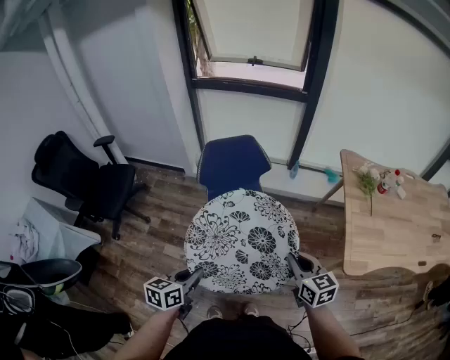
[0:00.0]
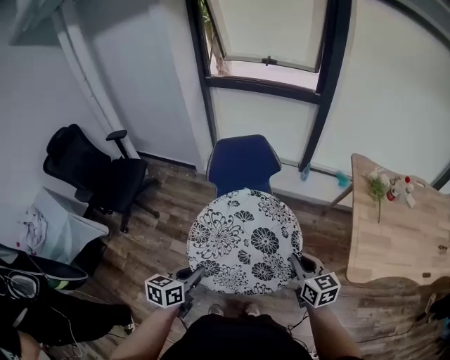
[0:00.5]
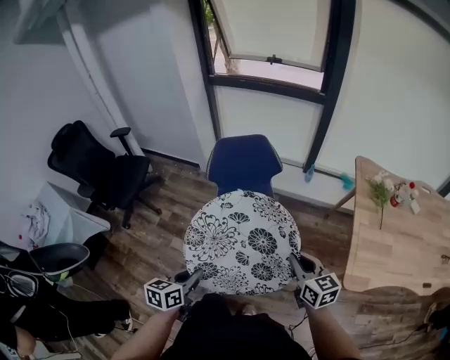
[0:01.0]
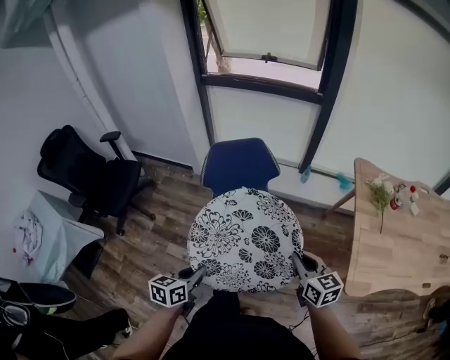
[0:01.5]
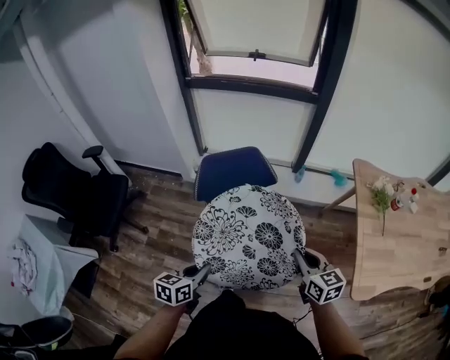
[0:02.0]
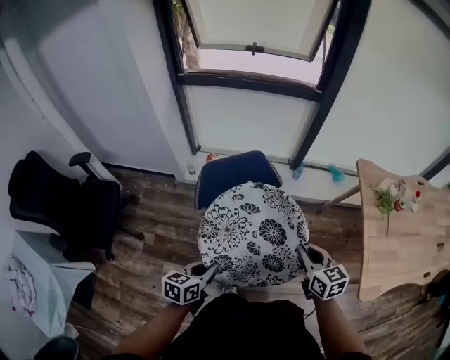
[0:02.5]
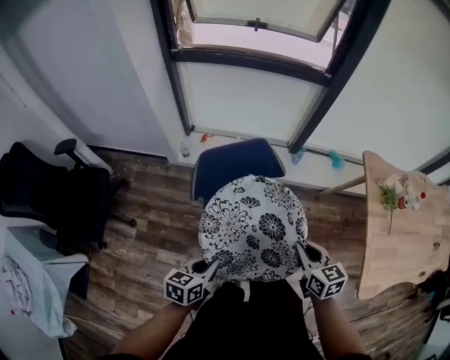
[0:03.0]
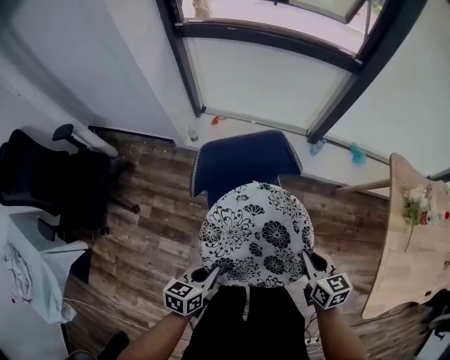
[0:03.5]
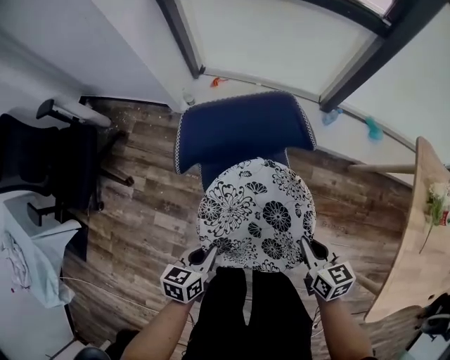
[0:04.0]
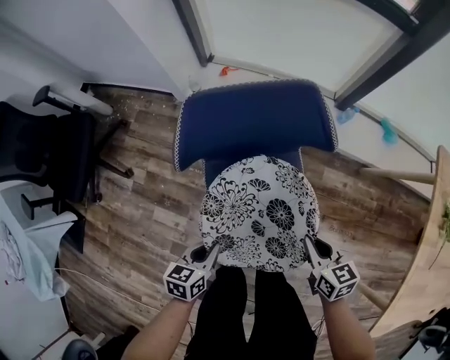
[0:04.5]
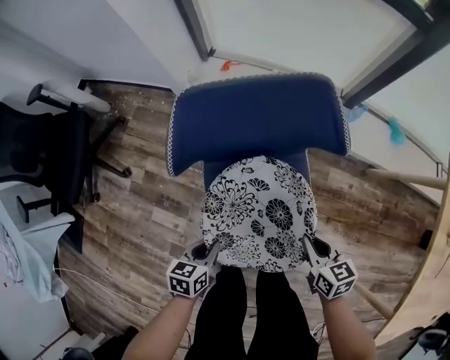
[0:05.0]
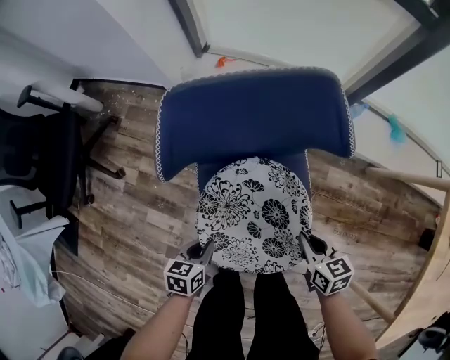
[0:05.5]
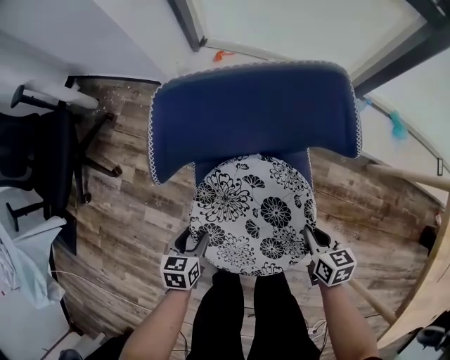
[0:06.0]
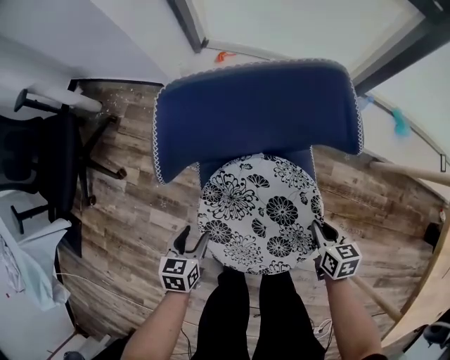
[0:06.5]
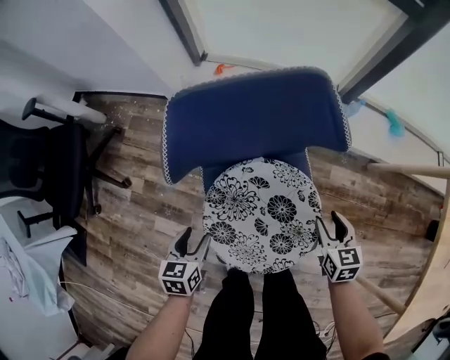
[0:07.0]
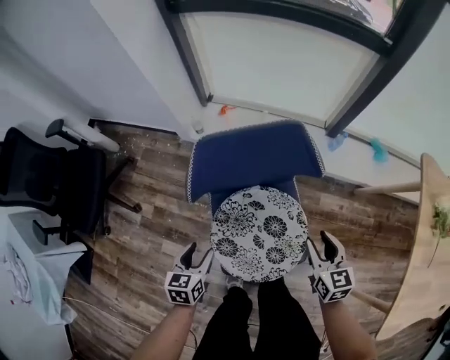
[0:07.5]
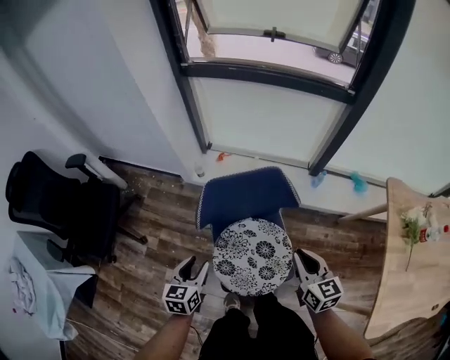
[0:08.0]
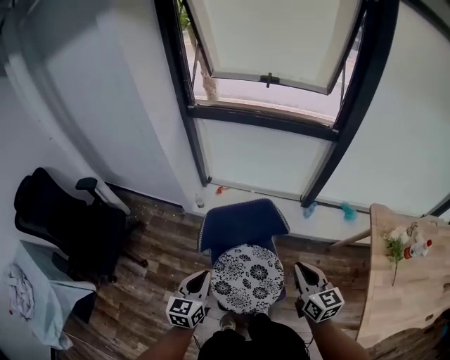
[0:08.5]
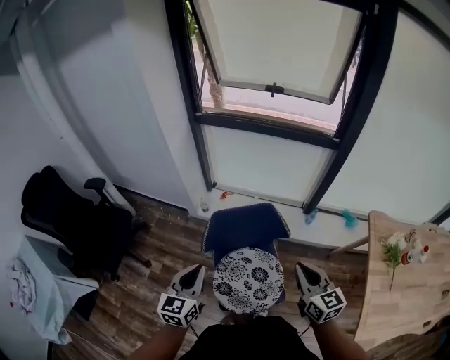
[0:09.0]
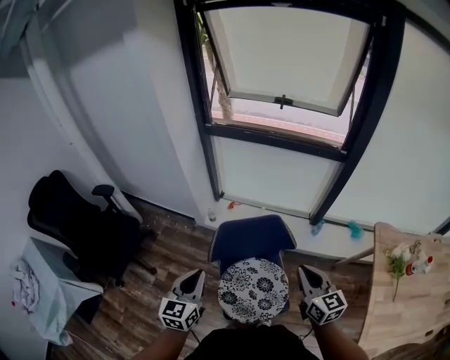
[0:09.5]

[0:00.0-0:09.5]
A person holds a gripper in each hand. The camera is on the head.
0.0 to 2.0 s: Both grippers travel together forward, about 15 cm.
2.0 to 4.0 s: The grippers both shift downward and forward by some 25 cm.
4.0 to 5.5 s: The two grippers go roughly 15 cm downward.
5.5 to 7.5 s: The grippers both shift upward by some 15 cm. The left gripper opens its fingers. The right gripper turns by about 20 degrees, and opens up.
7.5 to 9.5 s: The two grippers go about 35 cm upward. The right gripper rotates roughly 20 degrees, and closes up; the left gripper rotates approximately 30 degrees, and closes its fingers.

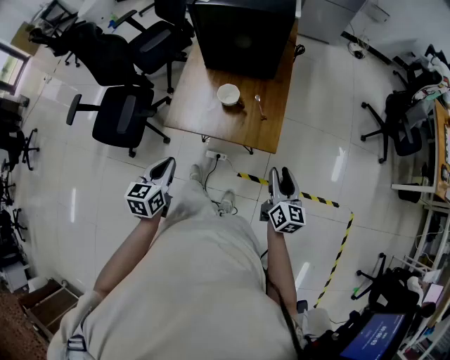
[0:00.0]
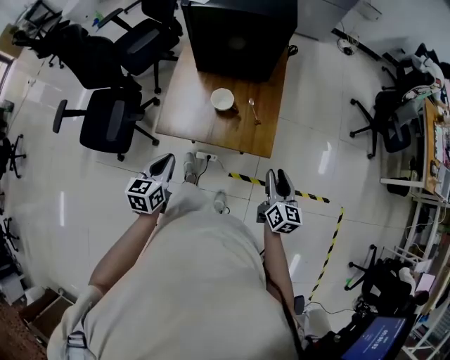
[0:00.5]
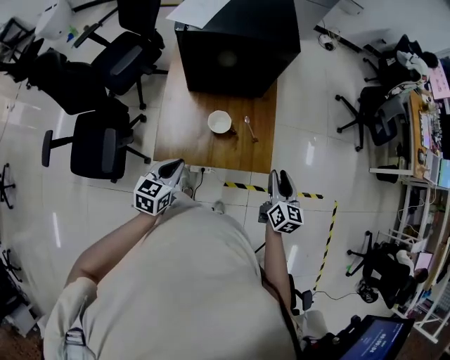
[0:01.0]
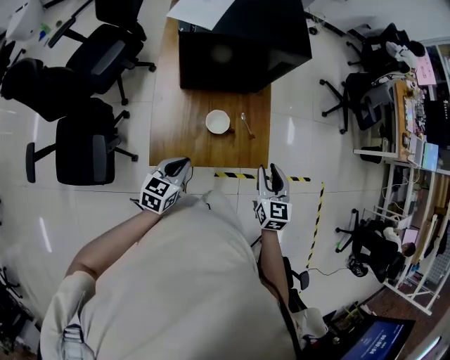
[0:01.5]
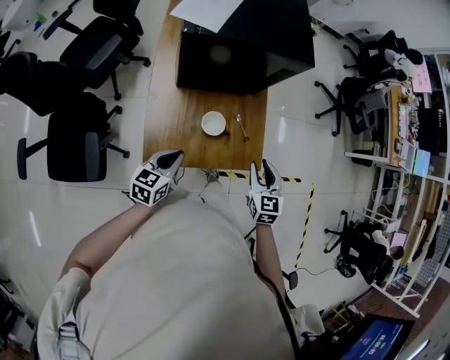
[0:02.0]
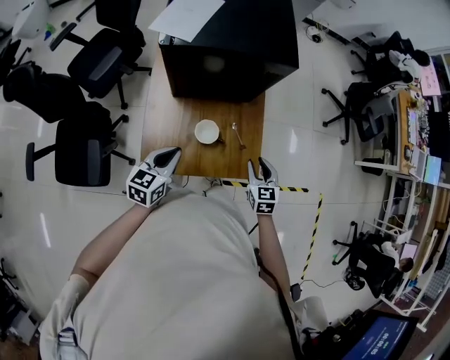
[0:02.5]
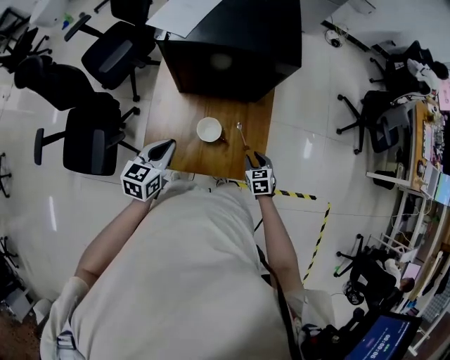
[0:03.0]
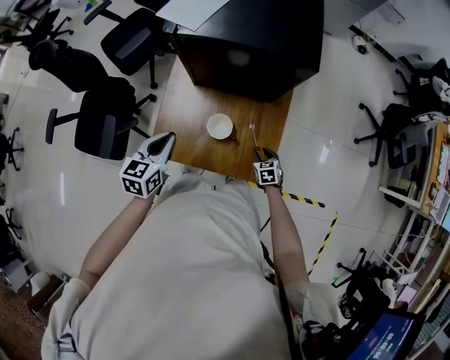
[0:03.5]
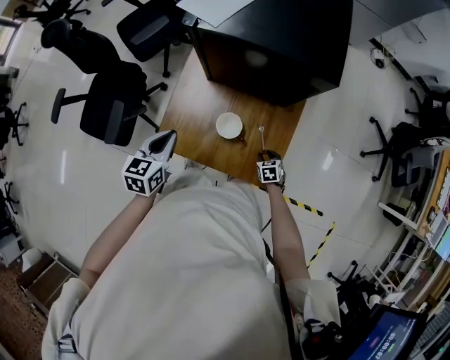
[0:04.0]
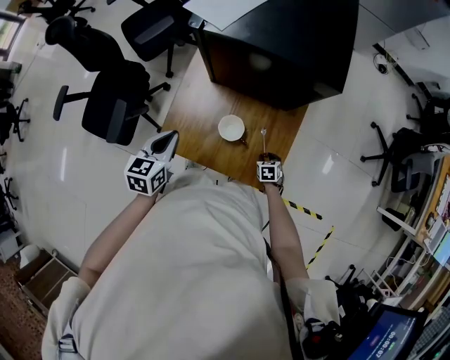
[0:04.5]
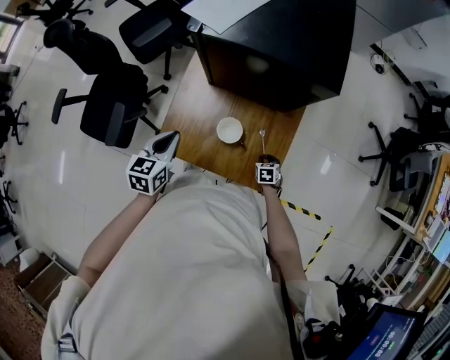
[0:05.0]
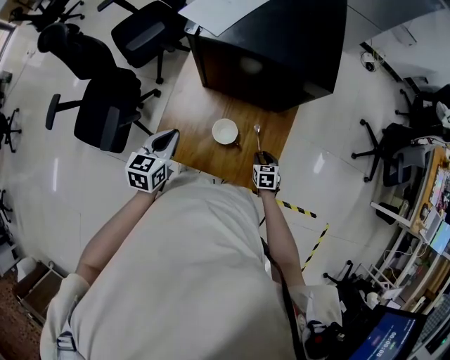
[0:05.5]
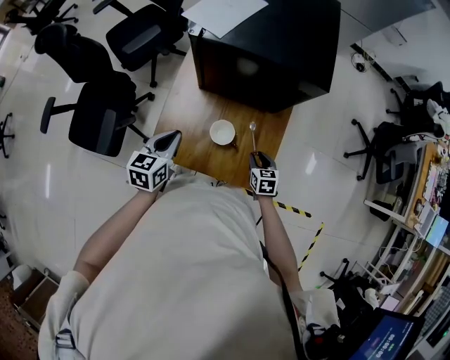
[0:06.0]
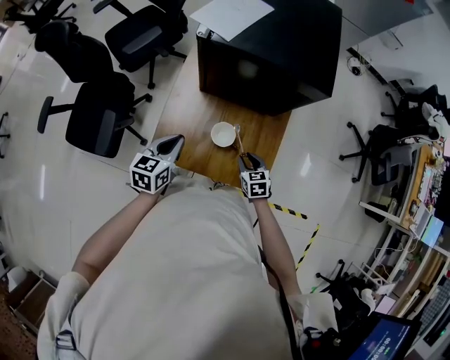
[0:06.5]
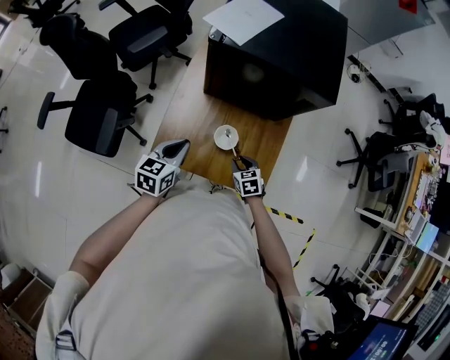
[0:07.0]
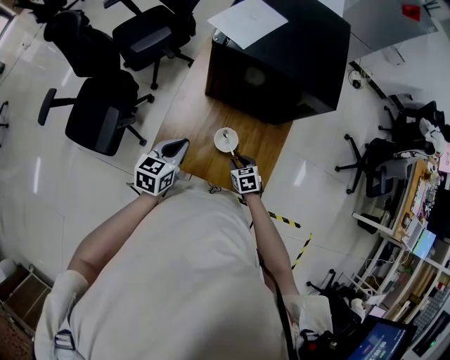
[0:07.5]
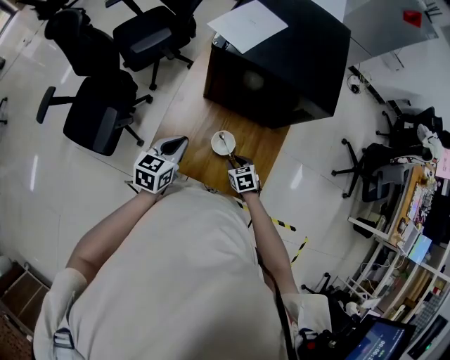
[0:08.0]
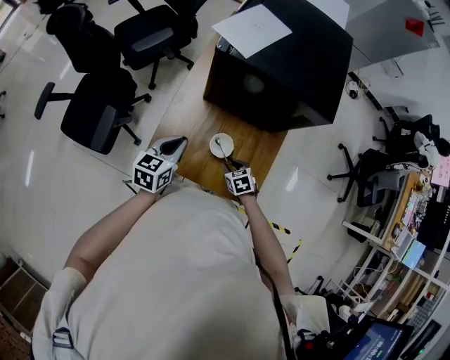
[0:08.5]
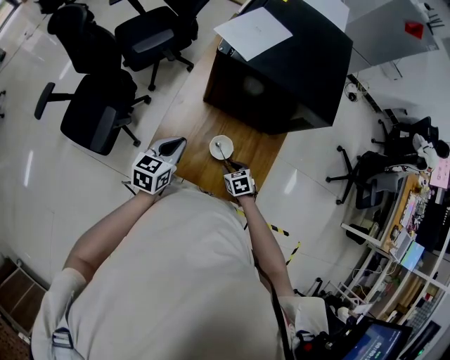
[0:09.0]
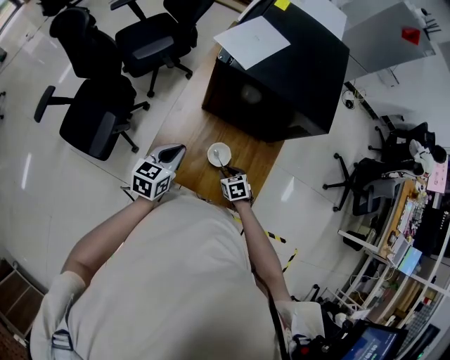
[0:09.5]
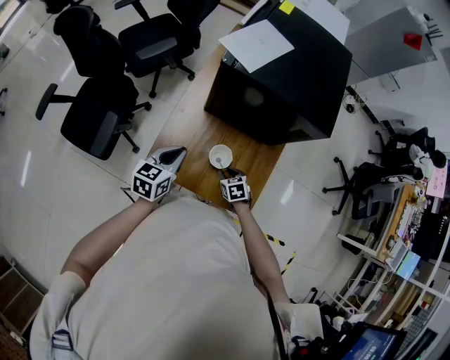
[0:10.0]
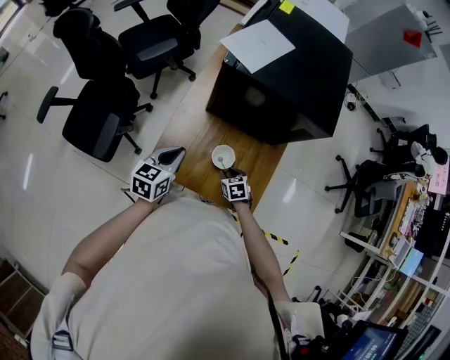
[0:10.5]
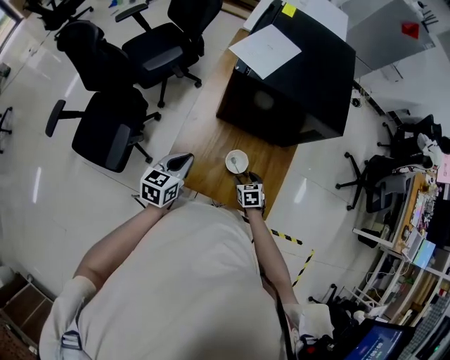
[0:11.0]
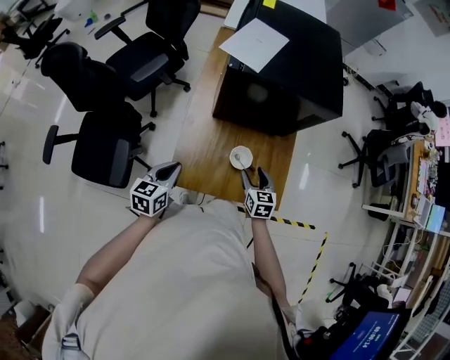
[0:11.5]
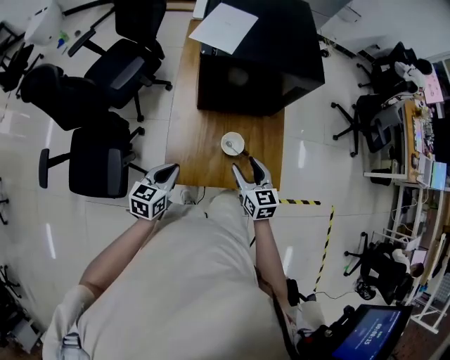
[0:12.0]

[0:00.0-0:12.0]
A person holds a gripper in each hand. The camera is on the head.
0.0 to 2.0 s: The right gripper shifts by roughly 20 cm, and turns by approximately 40 degrees. Meanwhile the left gripper shifts by some 25 cm, and changes its angle by roughly 30 degrees.
2.0 to 4.0 s: The left gripper moves approximately 5 cm, and changes its angle by some 30 degrees. The right gripper heads downward, covering some 30 cm, and tips its fingers downward by some 30 degrees.
4.0 to 6.0 s: The right gripper is displaced upward by roughly 15 cm.
6.0 to 8.0 s: The right gripper heads to the left, covering roughly 10 cm, and turns by about 20 degrees.
8.0 to 10.0 s: The grippers make only small movements.
10.0 to 12.0 s: The right gripper is displaced upward by roughly 20 cm, points its fingers roughly 30 degrees further upward, and opens up, while the left gripper shifts roughly 10 cm to the left and backward.

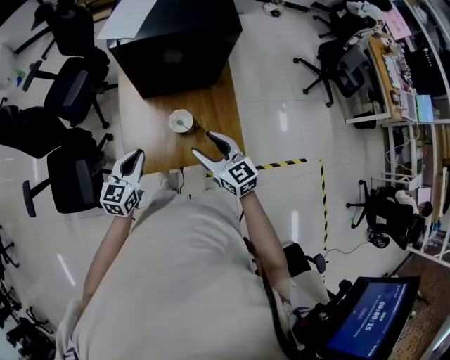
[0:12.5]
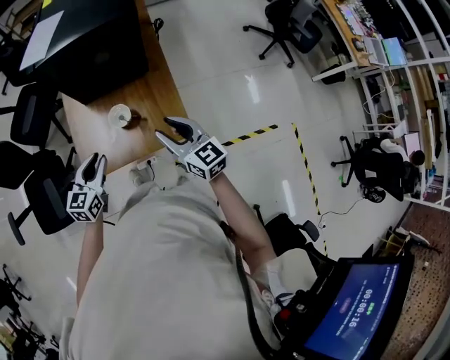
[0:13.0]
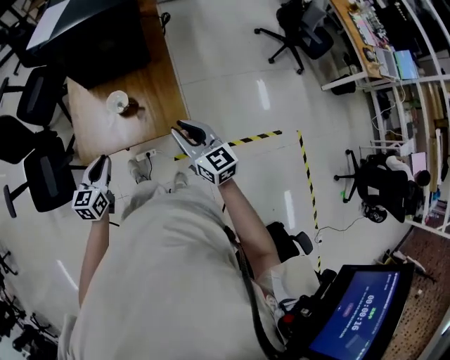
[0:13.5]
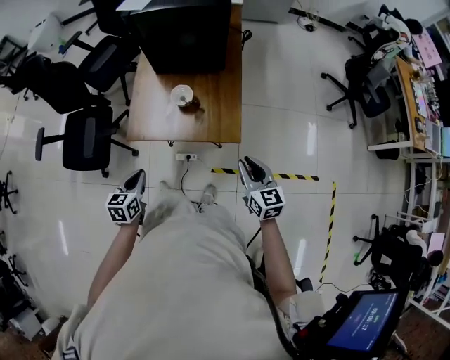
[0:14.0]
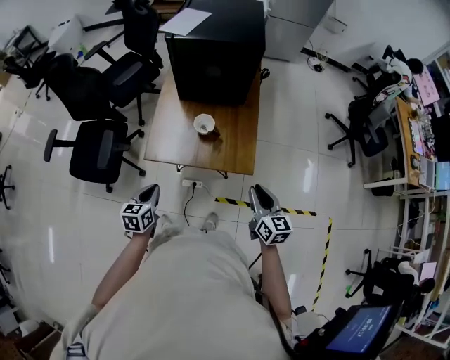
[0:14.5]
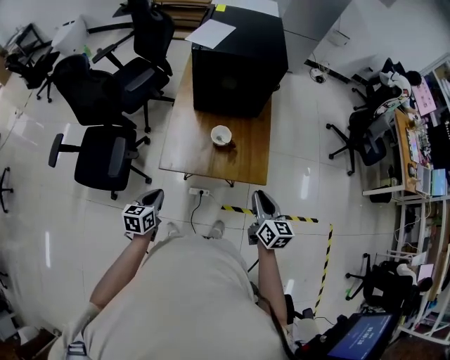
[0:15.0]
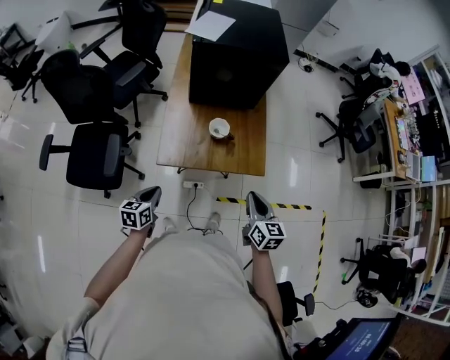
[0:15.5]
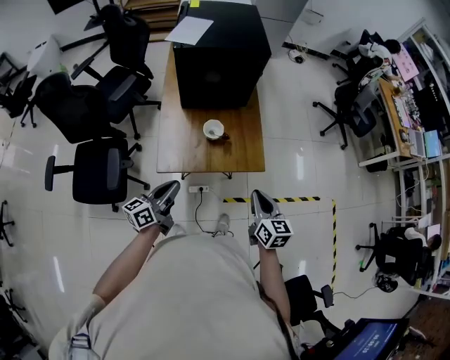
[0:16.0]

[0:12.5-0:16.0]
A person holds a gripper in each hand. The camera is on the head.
12.5 to 14.5 s: The right gripper travels to the right and backward by some 25 cm, and closes. The left gripper is displaced backward by roughly 20 cm, and swivels approximately 30 degrees.
14.5 to 16.0 s: The left gripper goes approximately 10 cm upward, travels to the left and back again, approximately 10 cm each way, and points its fingers about 30 degrees further upward. Meanwhile the right gripper moves to the left, about 10 cm.

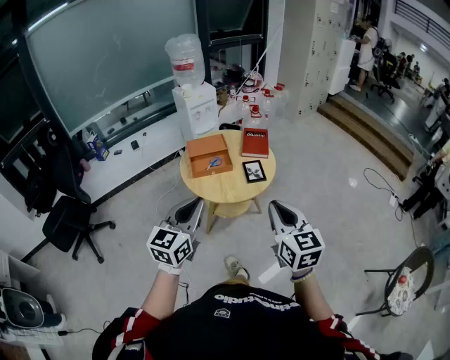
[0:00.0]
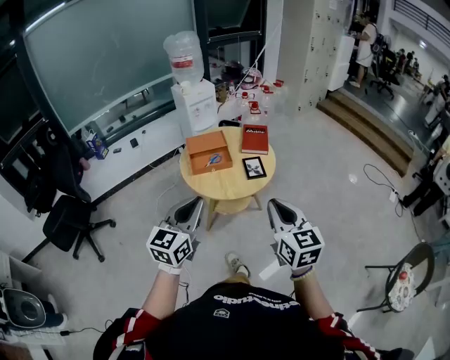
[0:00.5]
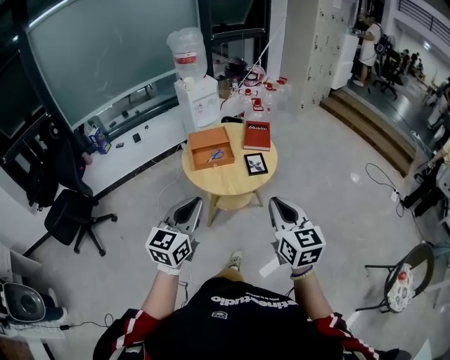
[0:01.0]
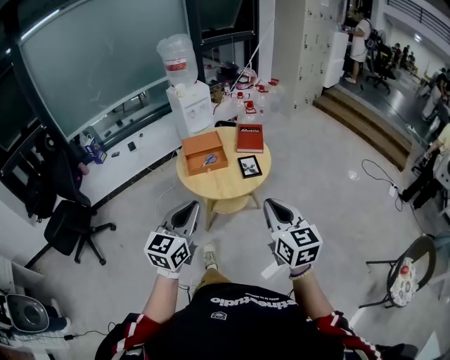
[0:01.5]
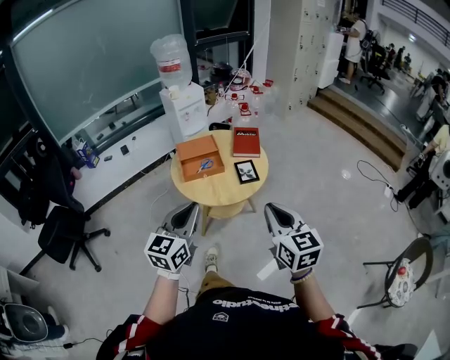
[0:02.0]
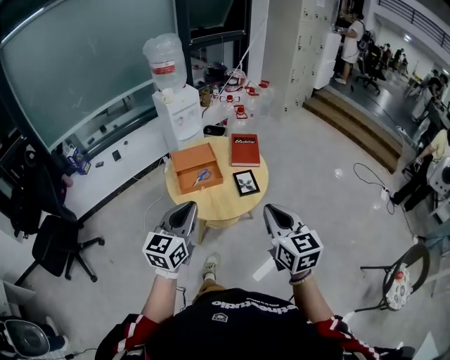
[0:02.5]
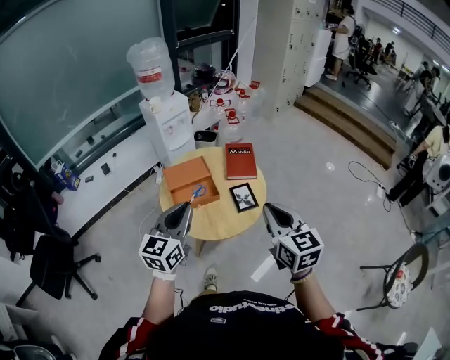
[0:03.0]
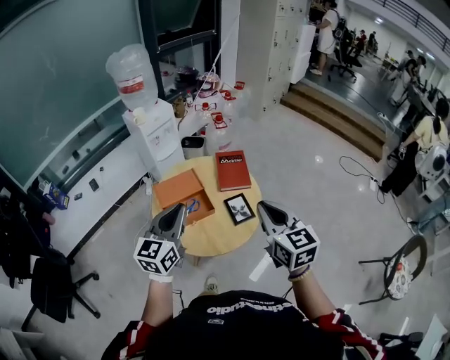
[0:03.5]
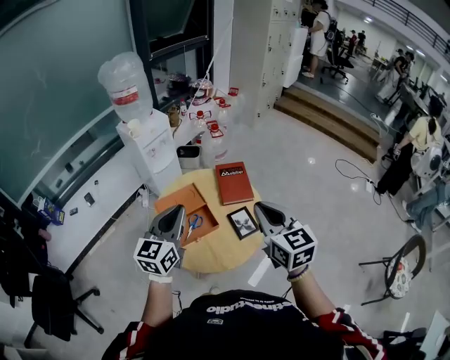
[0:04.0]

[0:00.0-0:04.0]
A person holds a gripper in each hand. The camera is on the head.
0.0 to 2.0 s: There are only small adjustments of the grippers.
2.0 to 4.0 s: Both grippers travel together forward, roughly 35 cm.
